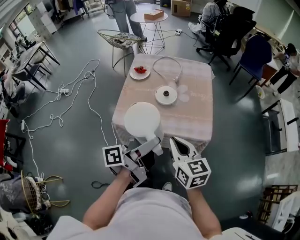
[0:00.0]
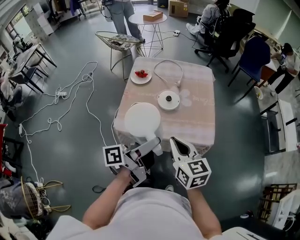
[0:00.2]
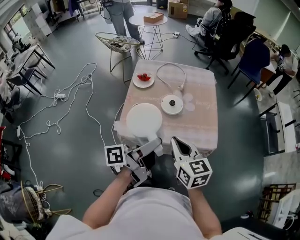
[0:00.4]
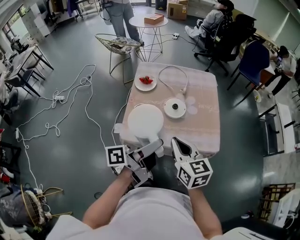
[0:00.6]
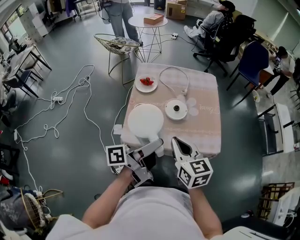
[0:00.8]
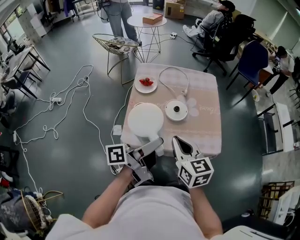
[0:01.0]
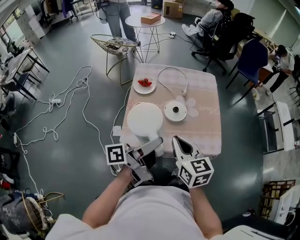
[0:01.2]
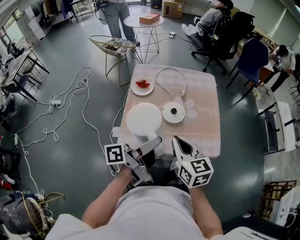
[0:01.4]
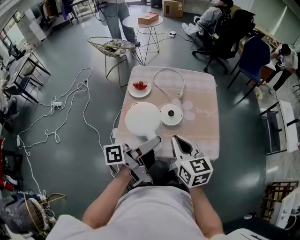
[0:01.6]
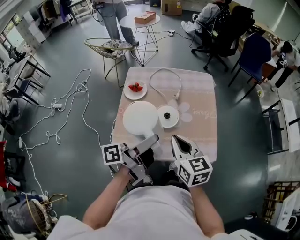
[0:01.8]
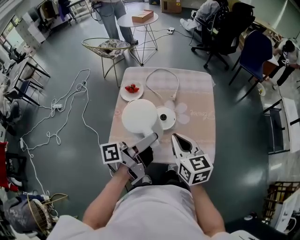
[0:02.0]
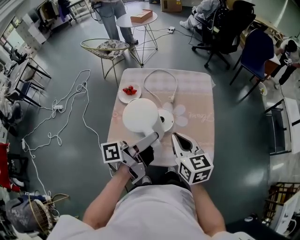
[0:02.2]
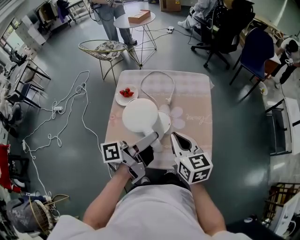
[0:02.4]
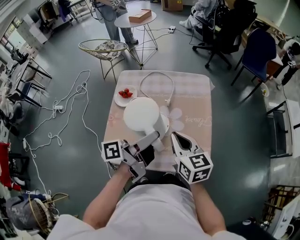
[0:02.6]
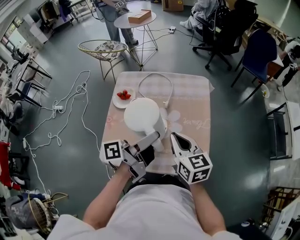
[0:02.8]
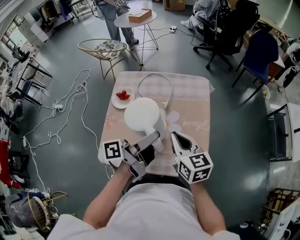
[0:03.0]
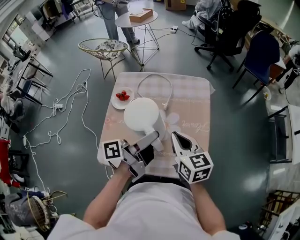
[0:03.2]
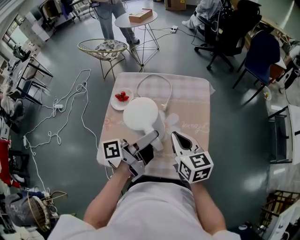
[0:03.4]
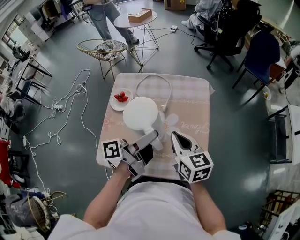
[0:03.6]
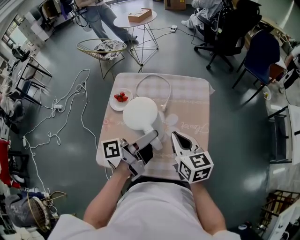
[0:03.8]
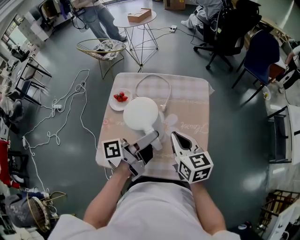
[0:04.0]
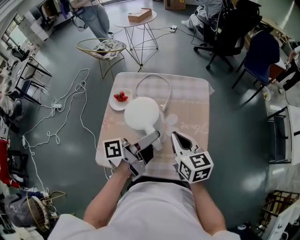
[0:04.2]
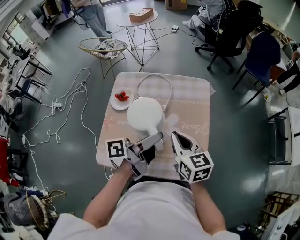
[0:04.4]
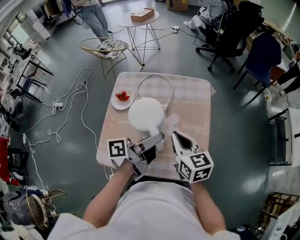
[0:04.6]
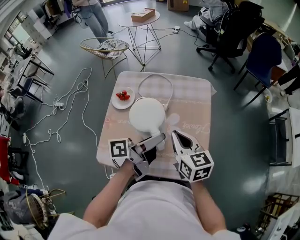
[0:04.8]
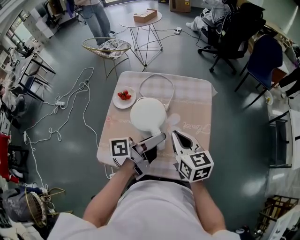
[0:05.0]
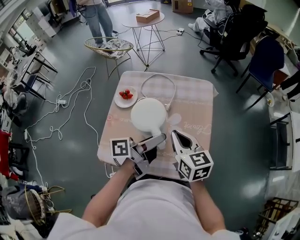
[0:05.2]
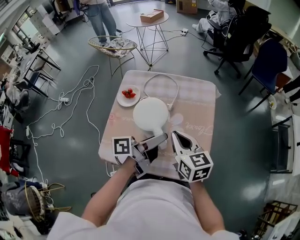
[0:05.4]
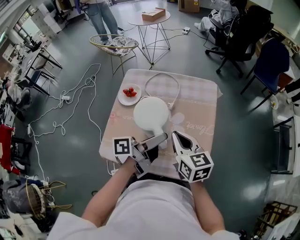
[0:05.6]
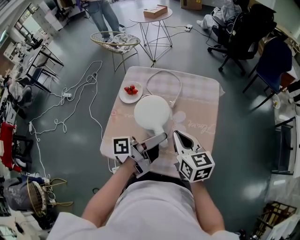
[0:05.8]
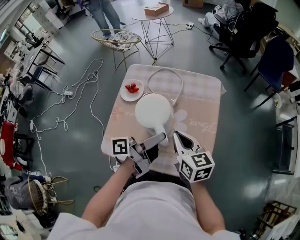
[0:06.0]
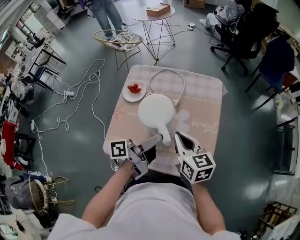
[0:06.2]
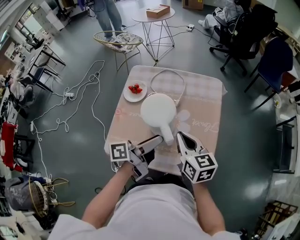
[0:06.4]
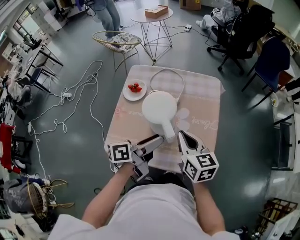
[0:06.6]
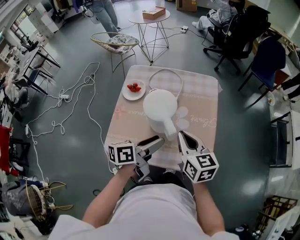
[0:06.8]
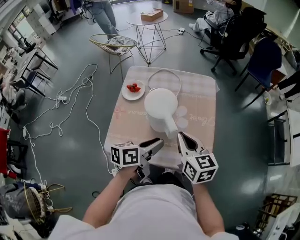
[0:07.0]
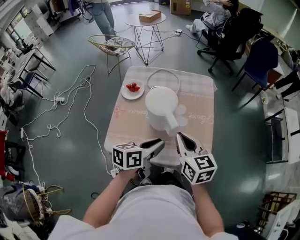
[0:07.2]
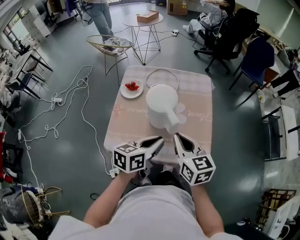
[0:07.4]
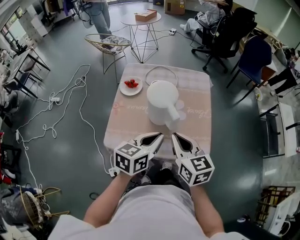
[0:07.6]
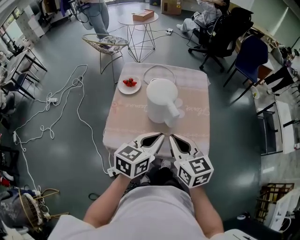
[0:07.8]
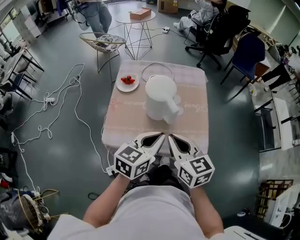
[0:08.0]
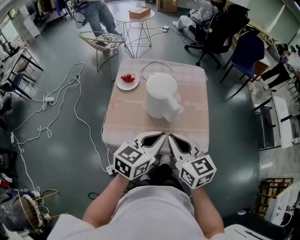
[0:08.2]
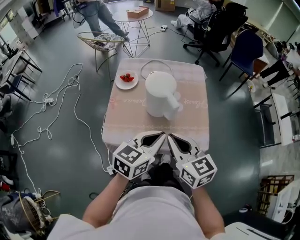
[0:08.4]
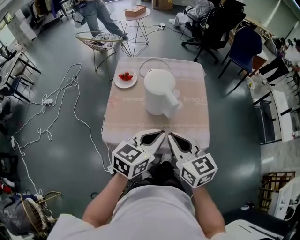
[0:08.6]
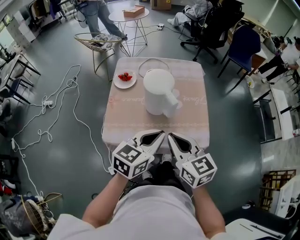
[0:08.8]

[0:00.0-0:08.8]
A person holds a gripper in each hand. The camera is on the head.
0:00.0 to 0:01.4: The right gripper shifts by roughly 15 cm.
0:01.4 to 0:03.0: The right gripper changes place by approximately 20 cm.
0:05.8 to 0:07.4: The right gripper ends up roughly 10 cm from where it was.
0:07.4 to 0:08.8: The right gripper ends up roughly 10 cm from where it was.

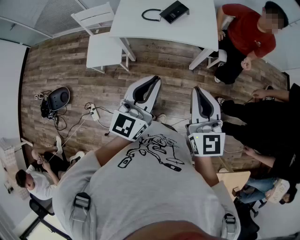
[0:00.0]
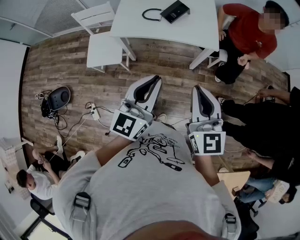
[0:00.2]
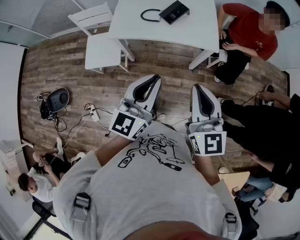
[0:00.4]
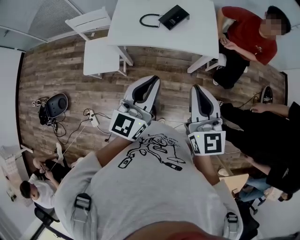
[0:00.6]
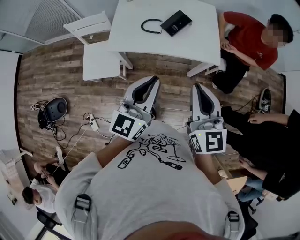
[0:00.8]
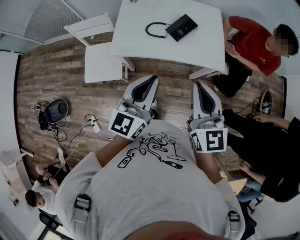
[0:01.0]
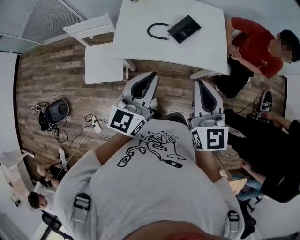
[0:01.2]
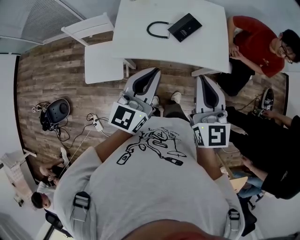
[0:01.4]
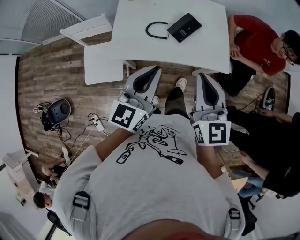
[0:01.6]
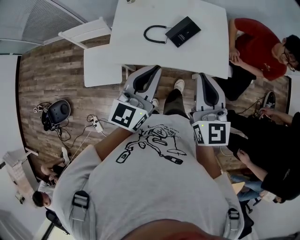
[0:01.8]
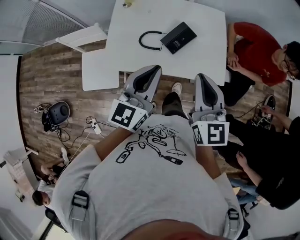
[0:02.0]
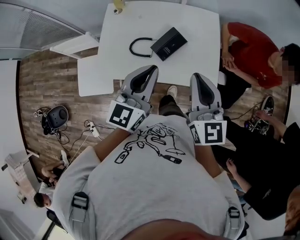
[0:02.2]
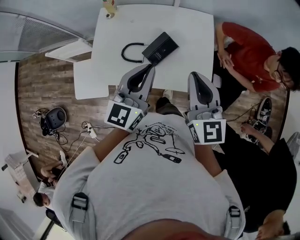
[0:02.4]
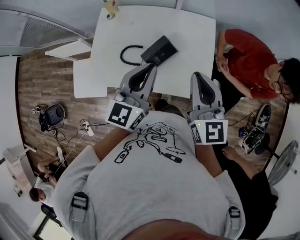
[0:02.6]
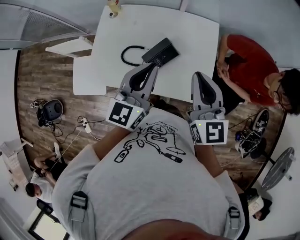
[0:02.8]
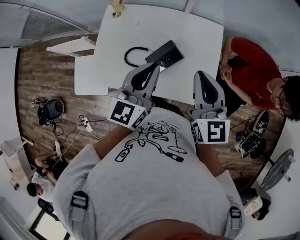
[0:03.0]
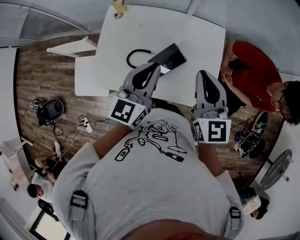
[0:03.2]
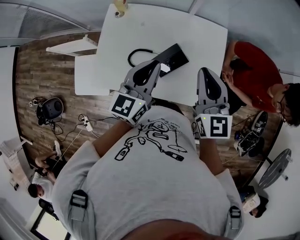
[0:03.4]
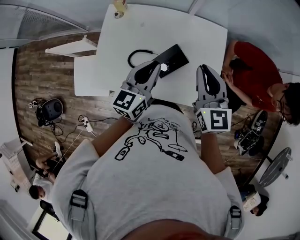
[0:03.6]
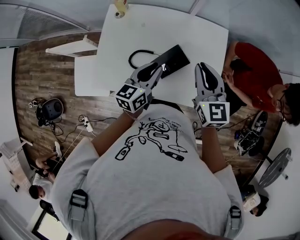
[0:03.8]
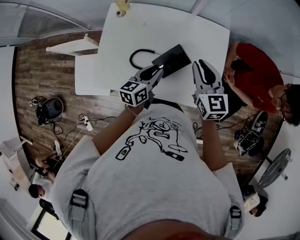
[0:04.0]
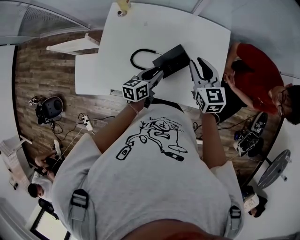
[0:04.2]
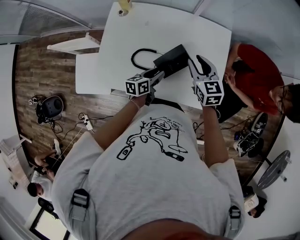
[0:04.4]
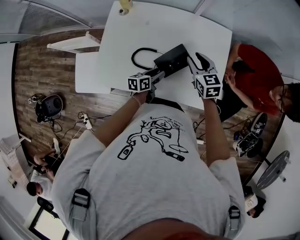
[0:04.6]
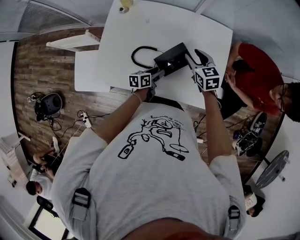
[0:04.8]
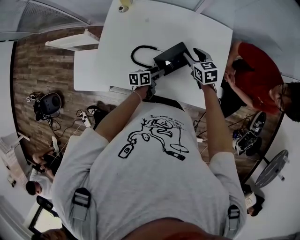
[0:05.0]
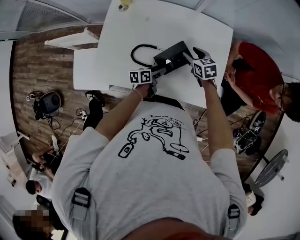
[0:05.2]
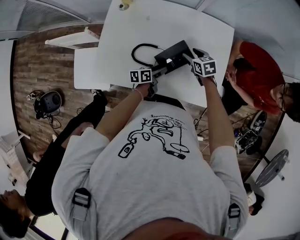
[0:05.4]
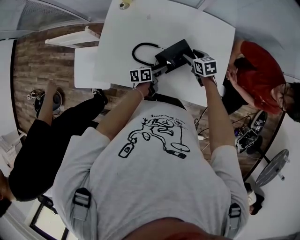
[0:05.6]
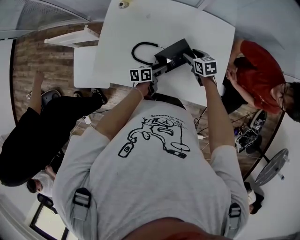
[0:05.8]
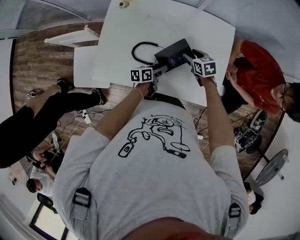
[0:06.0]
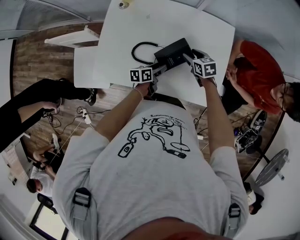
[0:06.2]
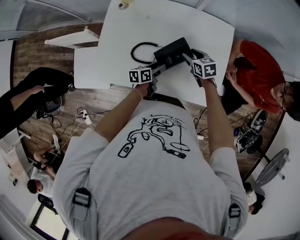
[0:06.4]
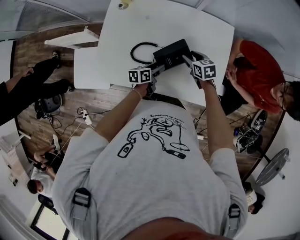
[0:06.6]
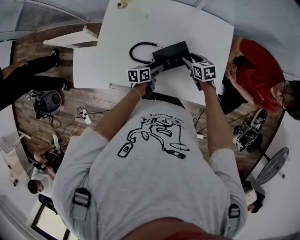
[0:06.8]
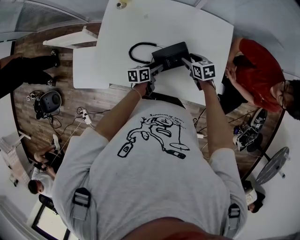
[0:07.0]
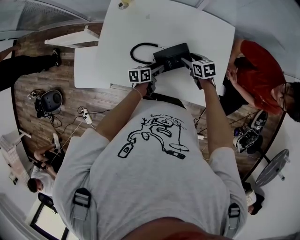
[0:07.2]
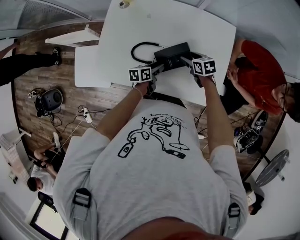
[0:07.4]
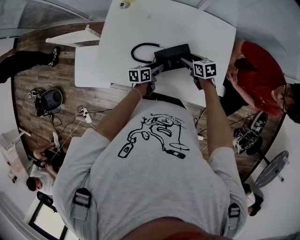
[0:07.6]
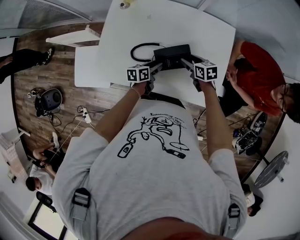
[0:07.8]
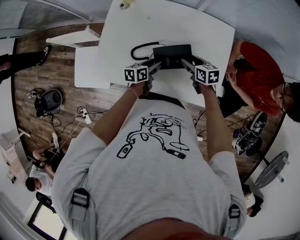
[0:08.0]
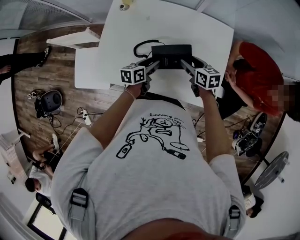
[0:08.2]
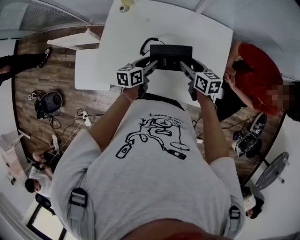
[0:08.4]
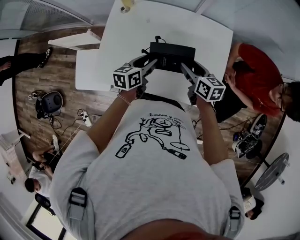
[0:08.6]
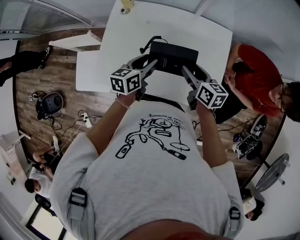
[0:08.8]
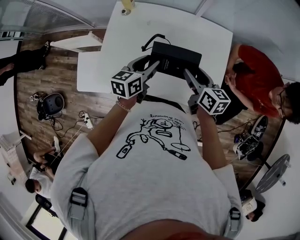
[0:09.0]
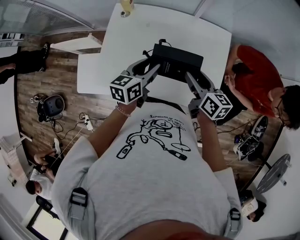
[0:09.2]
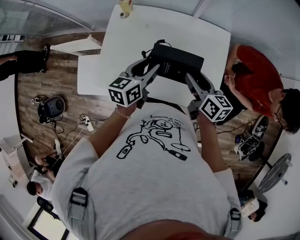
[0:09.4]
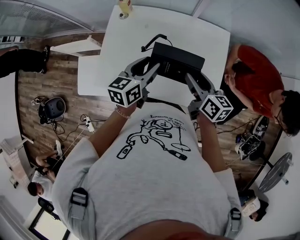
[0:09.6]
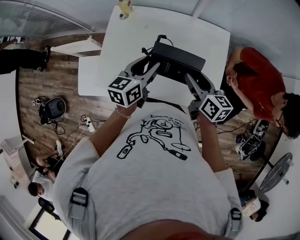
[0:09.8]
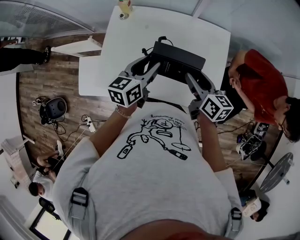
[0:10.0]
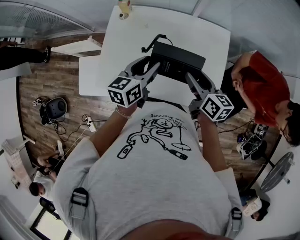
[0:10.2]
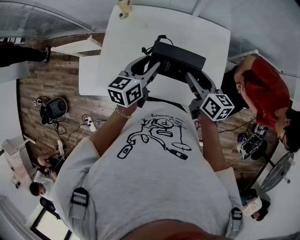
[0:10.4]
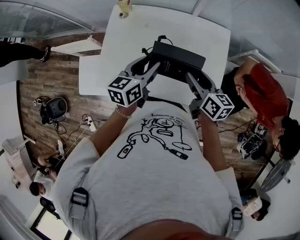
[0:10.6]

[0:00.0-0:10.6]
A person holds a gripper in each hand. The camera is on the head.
0:00.0 to 0:01.6: Both grippers travel together forward and to the left, some 30 cm.
0:01.6 to 0:03.0: The two grippers go approximately 30 cm forward and to the right.
0:03.0 to 0:04.6: The right gripper shifts roughly 25 cm downward and forward, rotates roughly 30 degrees, and opens up. Meanwhile the left gripper heads downward, covering about 35 cm, rotates approximately 50 degrees, and opens up.
0:04.6 to 0:06.0: The right gripper is displaced downward by approximately 15 cm, changes its angle by about 20 degrees, and opens its fingers.
0:06.0 to 0:07.6: There are only small adjustments of the grippers.
0:07.6 to 0:09.0: The grippers both shift upward by some 20 cm. The right gripper changes its angle by some 30 degrees; the left gripper turns by about 20 degrees.
0:09.0 to 0:10.6: The left gripper shifts roughly 5 cm upward.

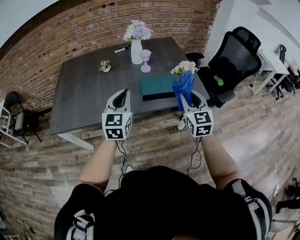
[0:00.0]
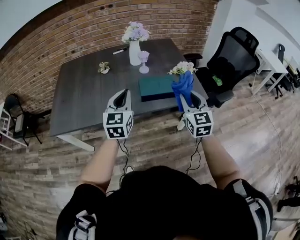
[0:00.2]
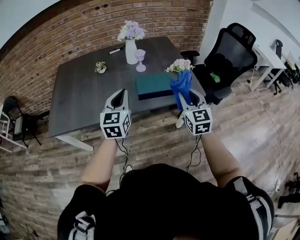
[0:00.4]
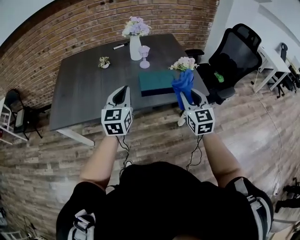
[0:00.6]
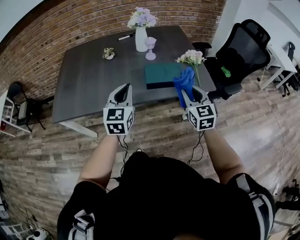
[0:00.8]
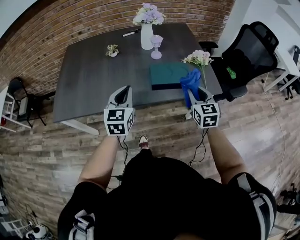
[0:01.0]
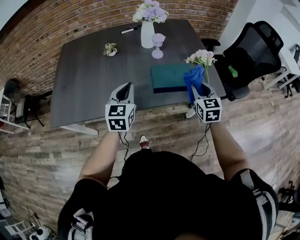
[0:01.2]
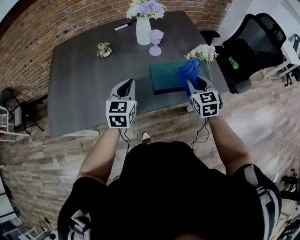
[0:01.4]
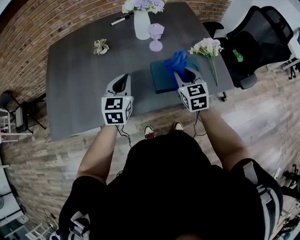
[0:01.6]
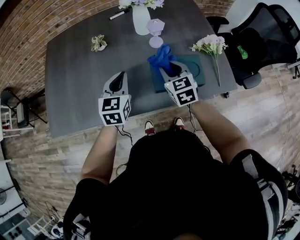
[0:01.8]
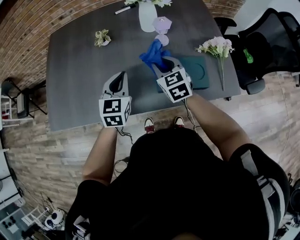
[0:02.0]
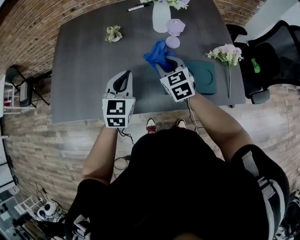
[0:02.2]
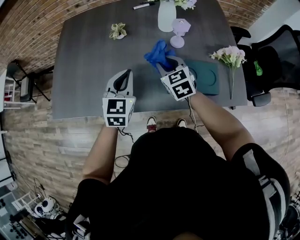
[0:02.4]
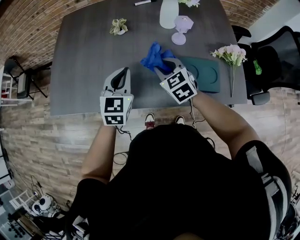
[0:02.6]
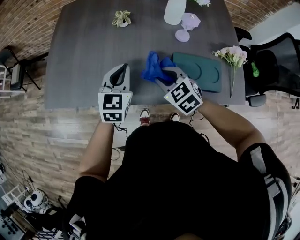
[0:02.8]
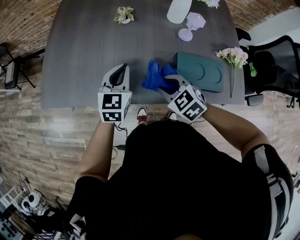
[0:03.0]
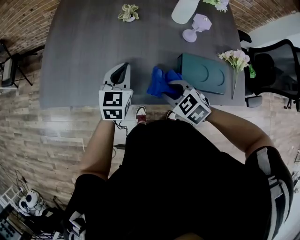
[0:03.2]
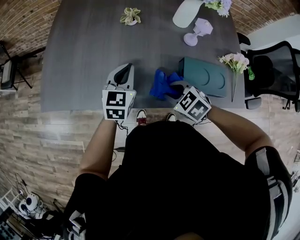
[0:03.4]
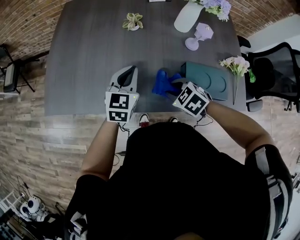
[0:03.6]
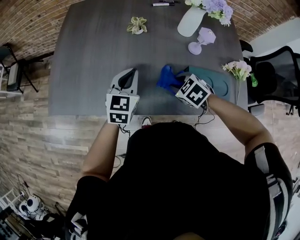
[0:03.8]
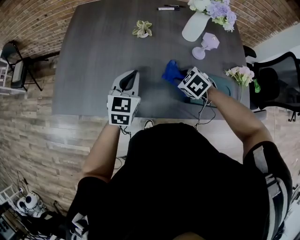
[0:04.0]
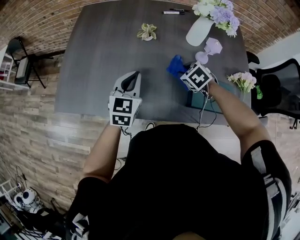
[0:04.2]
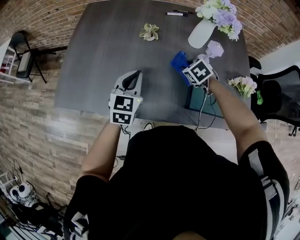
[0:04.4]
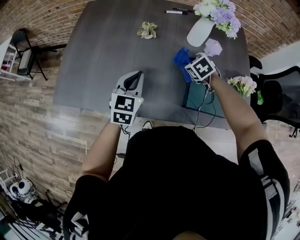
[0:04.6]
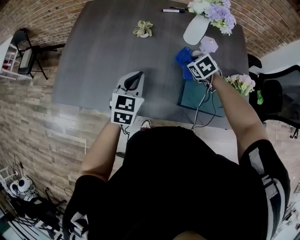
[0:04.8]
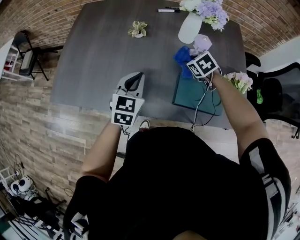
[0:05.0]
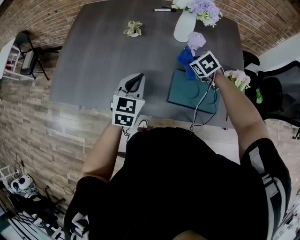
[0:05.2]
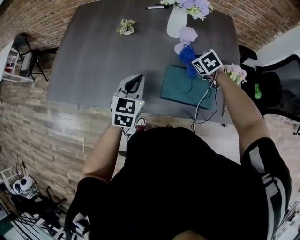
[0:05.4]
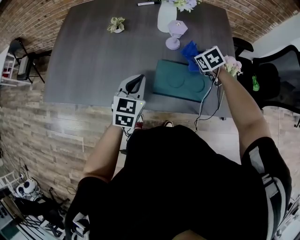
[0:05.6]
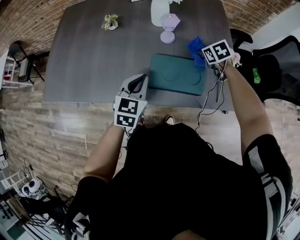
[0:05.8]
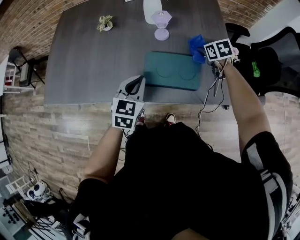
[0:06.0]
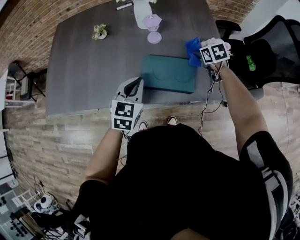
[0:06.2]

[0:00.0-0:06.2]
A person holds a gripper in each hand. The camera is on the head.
0:00.0 to 0:01.6: The left gripper moves forward and downward, about 20 cm. Meanwhile the right gripper heads forward, downward and to the left, covering approximately 25 cm.
0:01.6 to 0:03.2: The right gripper ends up about 20 cm from where it was, and swivels about 50 degrees. Meanwhile the left gripper shifts by about 15 cm.
0:03.2 to 0:04.6: The right gripper moves forward and to the right, about 25 cm.
0:04.6 to 0:06.2: The left gripper goes roughly 25 cm to the right and backward, while the right gripper heads to the right, covering approximately 30 cm, and turns by some 30 degrees.
